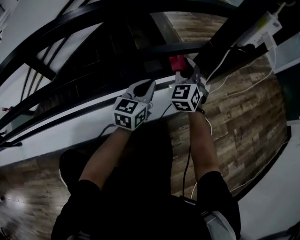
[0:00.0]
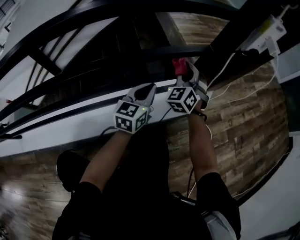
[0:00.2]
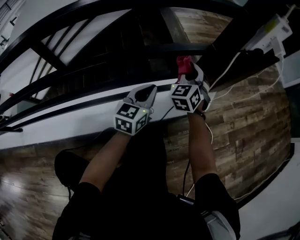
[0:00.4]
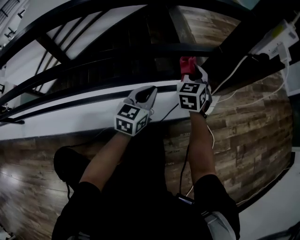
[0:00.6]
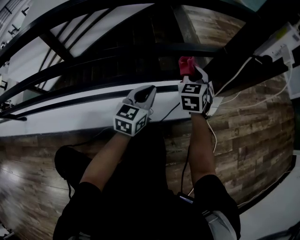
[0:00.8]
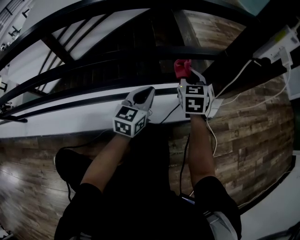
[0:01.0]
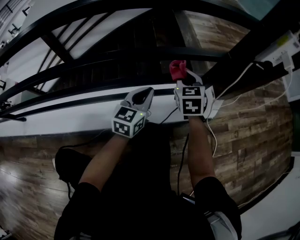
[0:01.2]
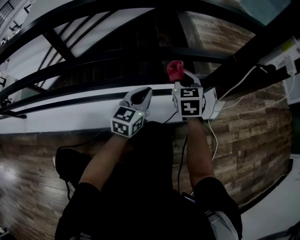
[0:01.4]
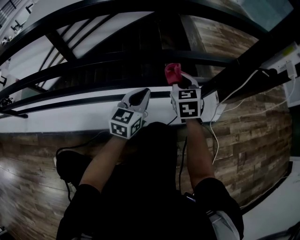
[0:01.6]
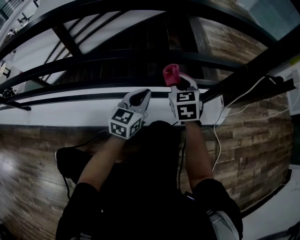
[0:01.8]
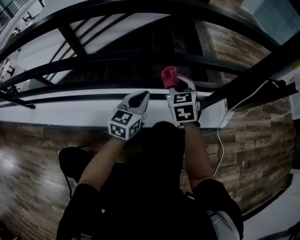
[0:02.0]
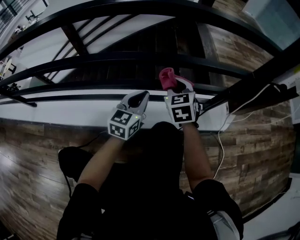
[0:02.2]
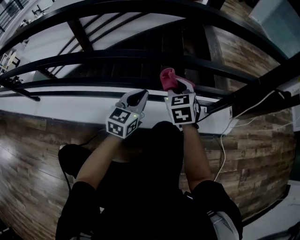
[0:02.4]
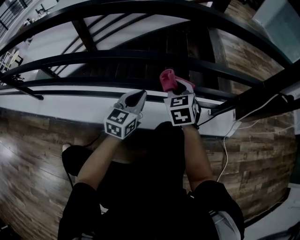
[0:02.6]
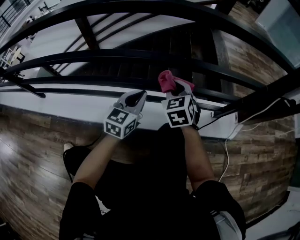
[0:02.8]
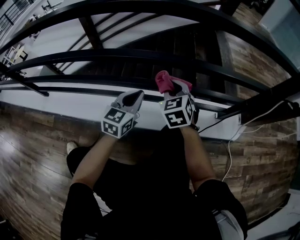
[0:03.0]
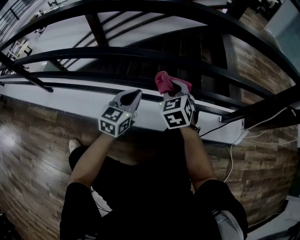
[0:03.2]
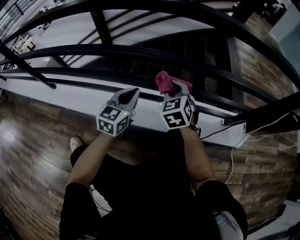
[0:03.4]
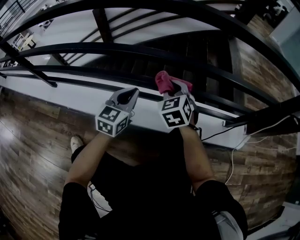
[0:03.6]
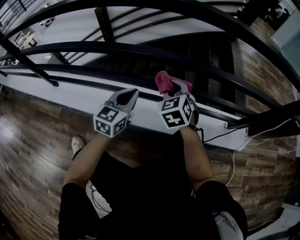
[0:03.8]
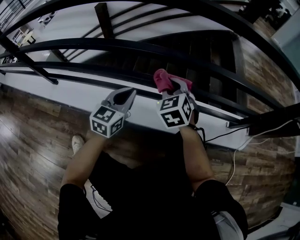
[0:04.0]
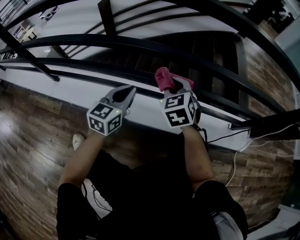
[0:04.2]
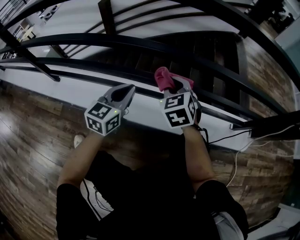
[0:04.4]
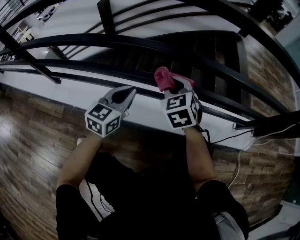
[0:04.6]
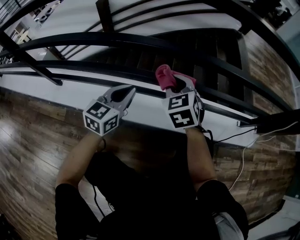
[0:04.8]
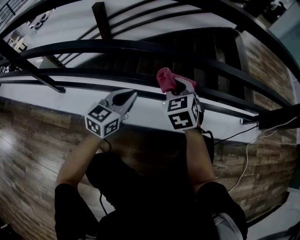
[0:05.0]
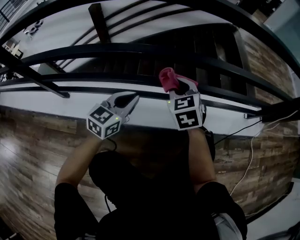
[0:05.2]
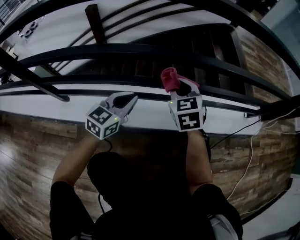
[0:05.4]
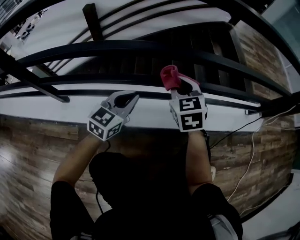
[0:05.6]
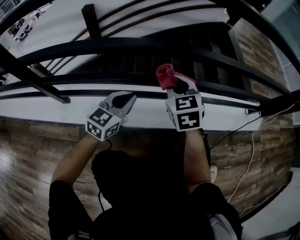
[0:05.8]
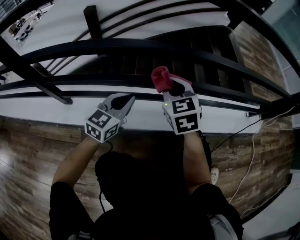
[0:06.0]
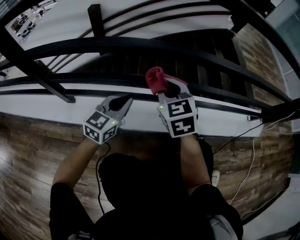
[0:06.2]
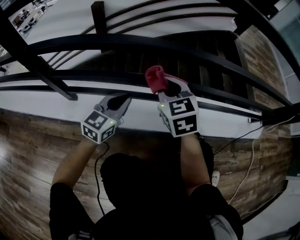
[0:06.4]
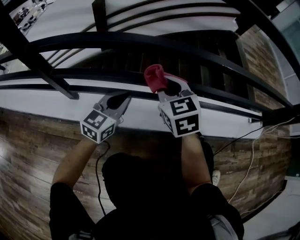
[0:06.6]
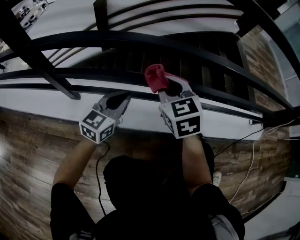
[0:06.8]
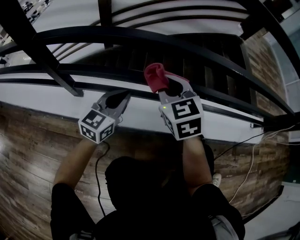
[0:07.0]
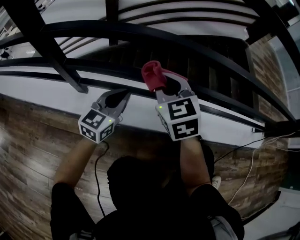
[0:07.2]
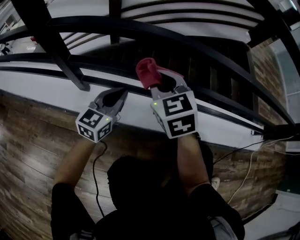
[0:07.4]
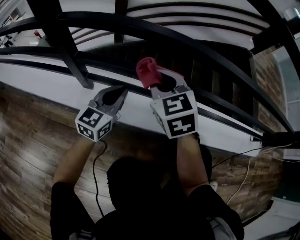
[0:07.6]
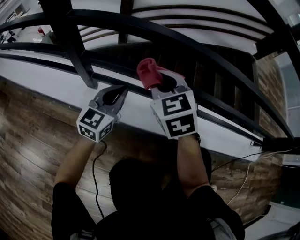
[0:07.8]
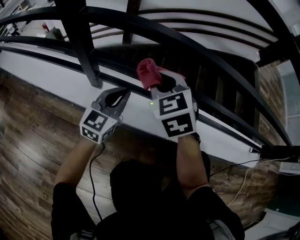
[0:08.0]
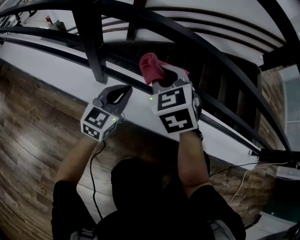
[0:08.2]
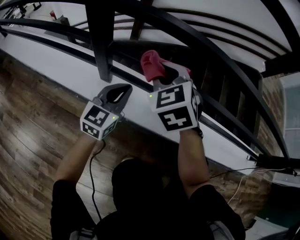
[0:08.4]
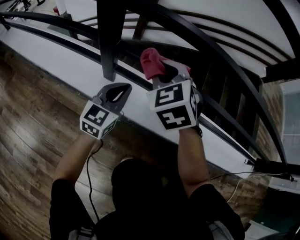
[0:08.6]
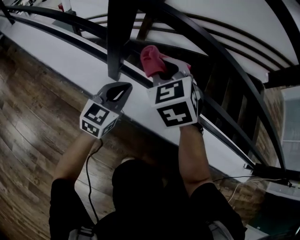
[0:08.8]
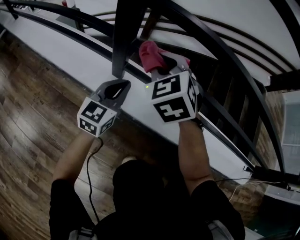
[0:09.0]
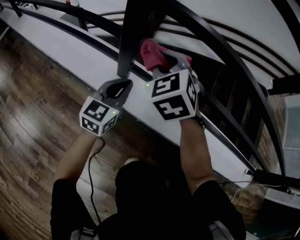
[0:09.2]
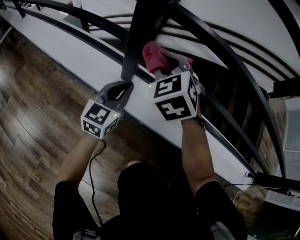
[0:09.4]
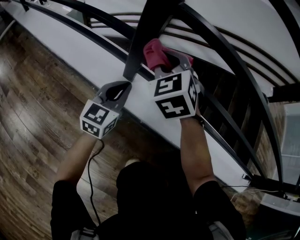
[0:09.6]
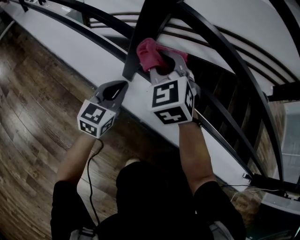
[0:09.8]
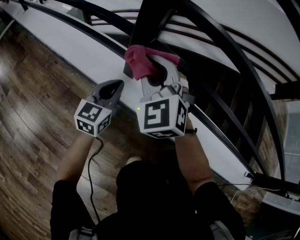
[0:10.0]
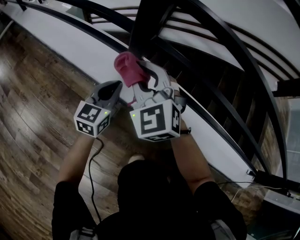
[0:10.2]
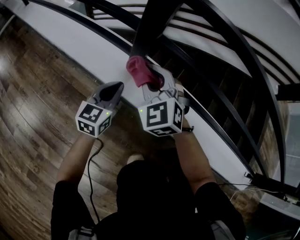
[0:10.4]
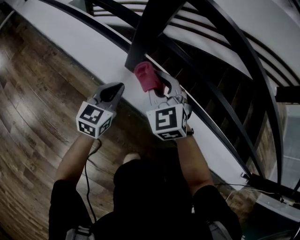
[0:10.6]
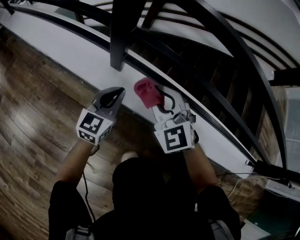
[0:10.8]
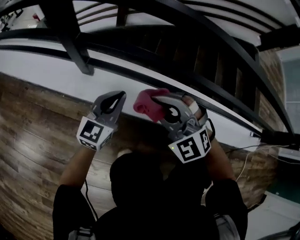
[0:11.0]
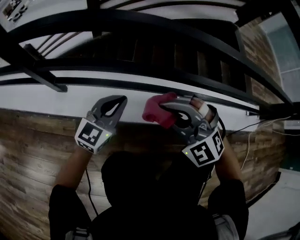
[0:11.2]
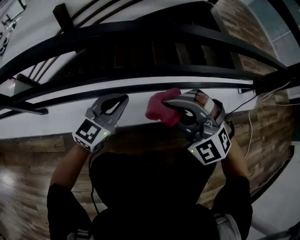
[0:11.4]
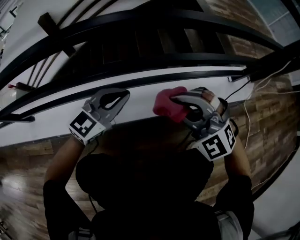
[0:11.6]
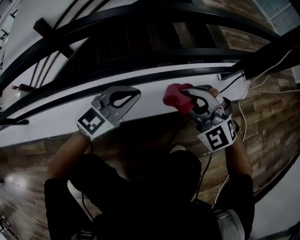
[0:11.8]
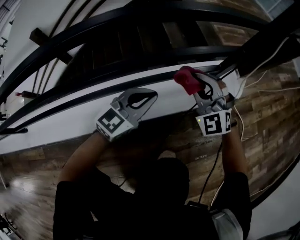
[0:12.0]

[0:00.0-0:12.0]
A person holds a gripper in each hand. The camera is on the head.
0:00.0 to 0:01.6: The left gripper travels to the left by approximately 10 cm. Meanwhile the right gripper travels to the left and downward by some 10 cm, and changes its angle by approximately 30 degrees.
0:01.6 to 0:03.0: Both grippers move to the left, some 20 cm. The right gripper changes its angle by approximately 20 degrees.
0:03.0 to 0:04.4: The two grippers go some 15 cm to the left.
0:04.4 to 0:06.0: Both grippers travel together to the left, about 20 cm.
0:06.0 to 0:07.6: Both grippers move to the left, approximately 20 cm.
0:07.6 to 0:09.0: Both grippers travel together to the left, about 15 cm. The right gripper changes its angle by some 20 degrees.
0:09.0 to 0:10.4: The left gripper heads to the left and downward, covering about 10 cm. Meanwhile the right gripper moves downward and to the left, approximately 10 cm.
0:10.4 to 0:12.0: The pair of grippers is taken approximately 90 cm. The left gripper swivels roughly 70 degrees; the right gripper changes its angle by approximately 40 degrees.

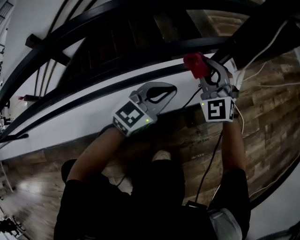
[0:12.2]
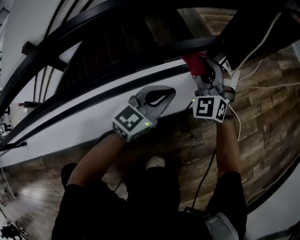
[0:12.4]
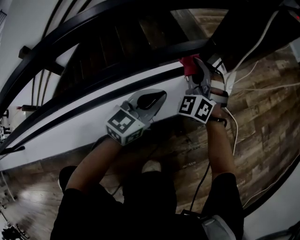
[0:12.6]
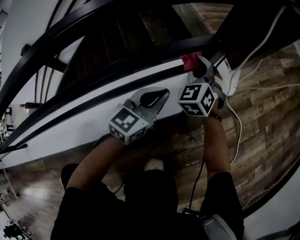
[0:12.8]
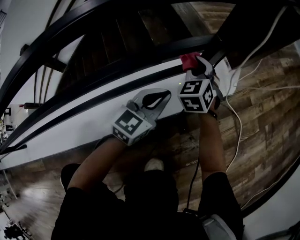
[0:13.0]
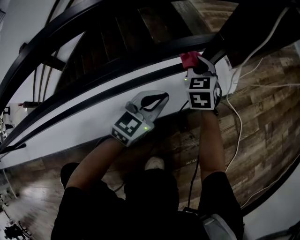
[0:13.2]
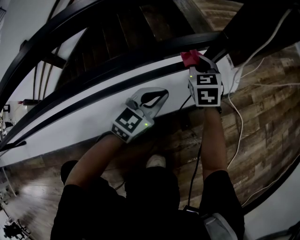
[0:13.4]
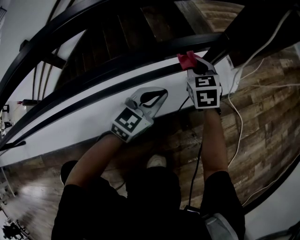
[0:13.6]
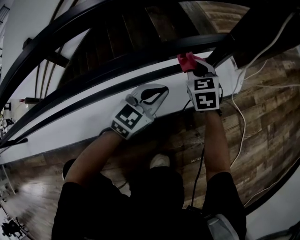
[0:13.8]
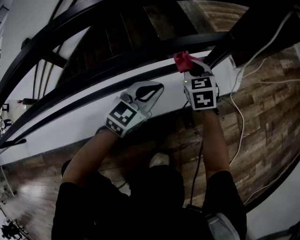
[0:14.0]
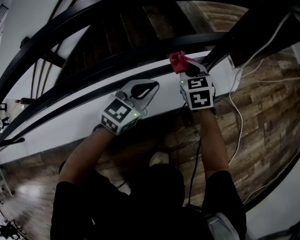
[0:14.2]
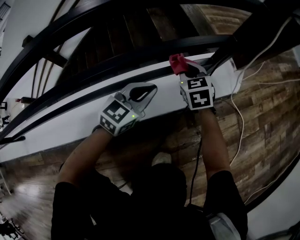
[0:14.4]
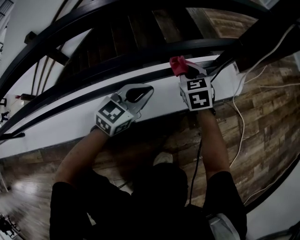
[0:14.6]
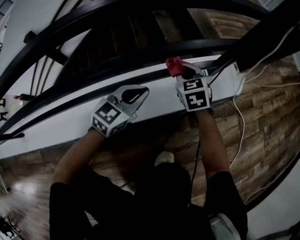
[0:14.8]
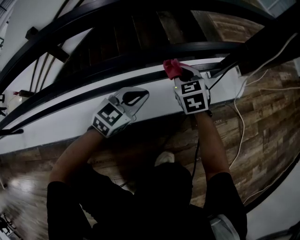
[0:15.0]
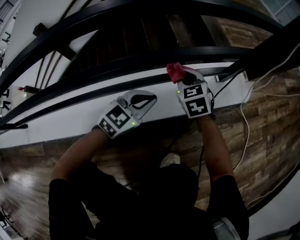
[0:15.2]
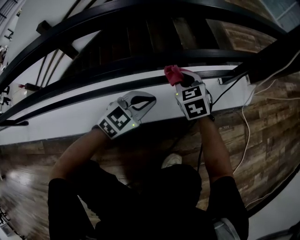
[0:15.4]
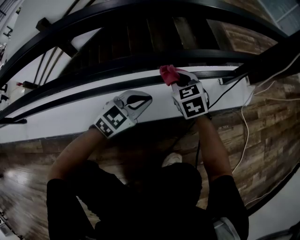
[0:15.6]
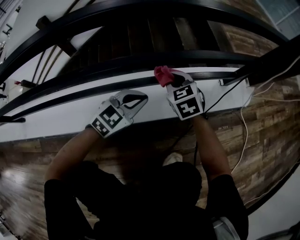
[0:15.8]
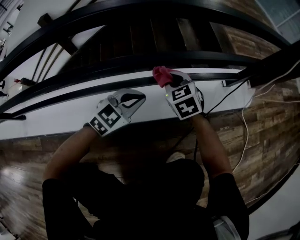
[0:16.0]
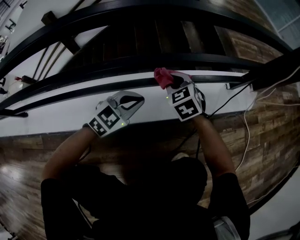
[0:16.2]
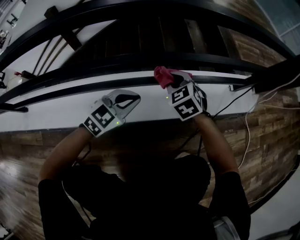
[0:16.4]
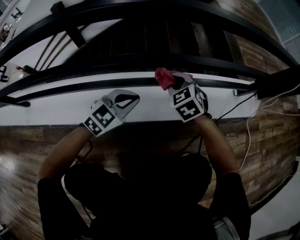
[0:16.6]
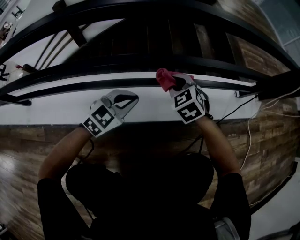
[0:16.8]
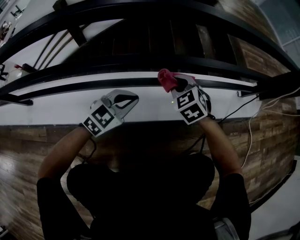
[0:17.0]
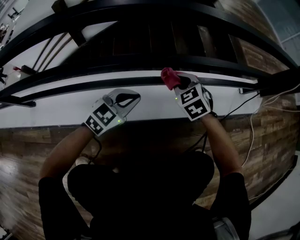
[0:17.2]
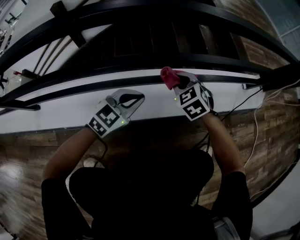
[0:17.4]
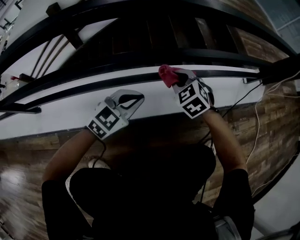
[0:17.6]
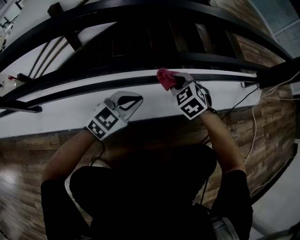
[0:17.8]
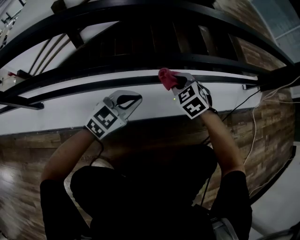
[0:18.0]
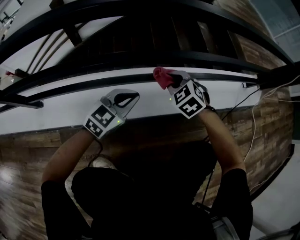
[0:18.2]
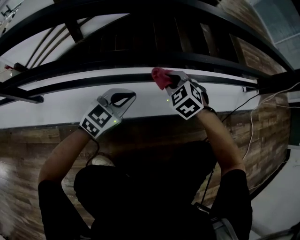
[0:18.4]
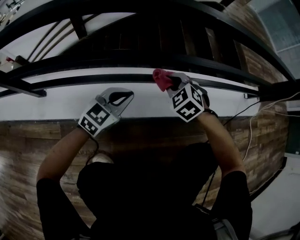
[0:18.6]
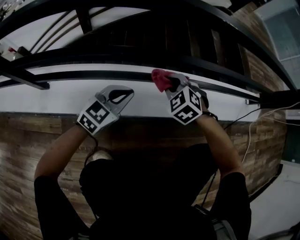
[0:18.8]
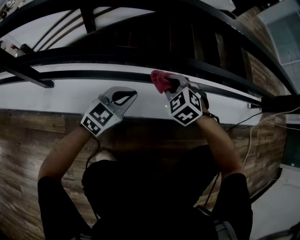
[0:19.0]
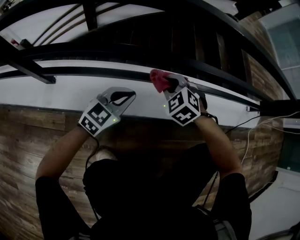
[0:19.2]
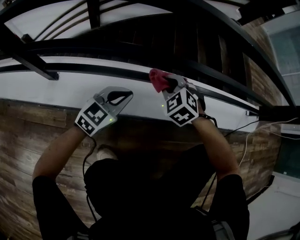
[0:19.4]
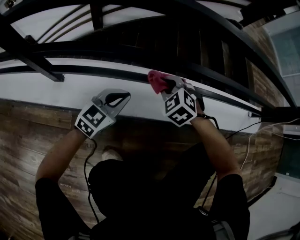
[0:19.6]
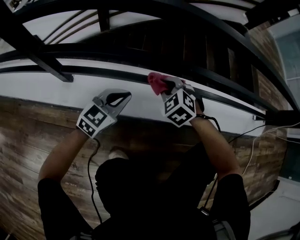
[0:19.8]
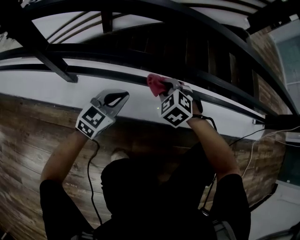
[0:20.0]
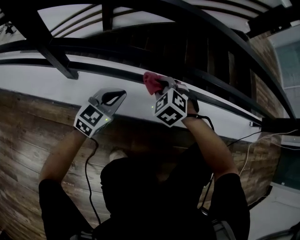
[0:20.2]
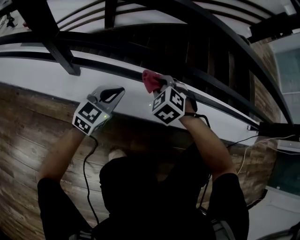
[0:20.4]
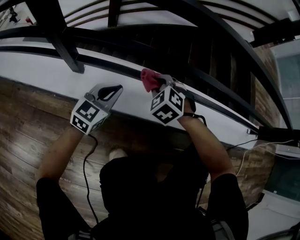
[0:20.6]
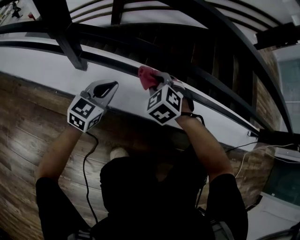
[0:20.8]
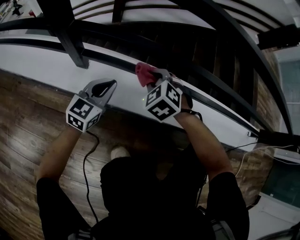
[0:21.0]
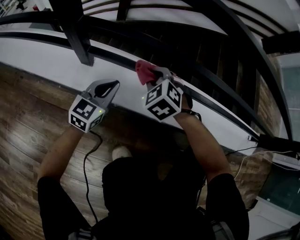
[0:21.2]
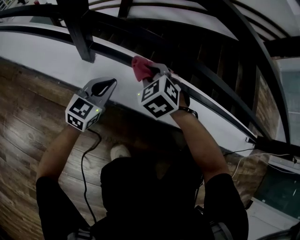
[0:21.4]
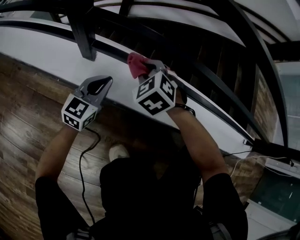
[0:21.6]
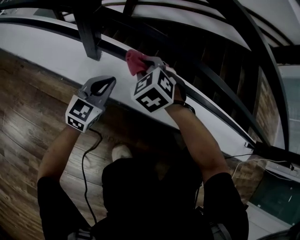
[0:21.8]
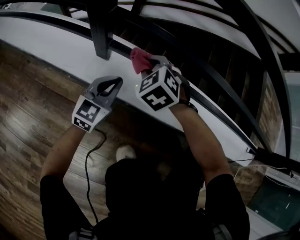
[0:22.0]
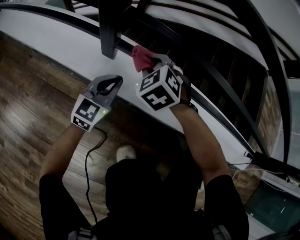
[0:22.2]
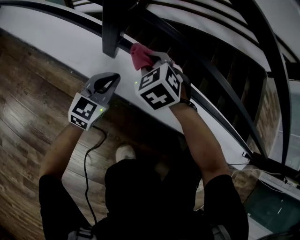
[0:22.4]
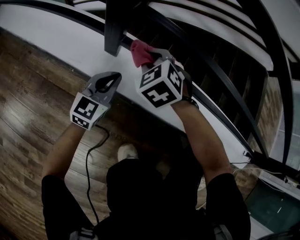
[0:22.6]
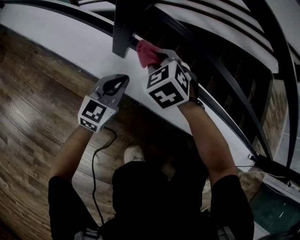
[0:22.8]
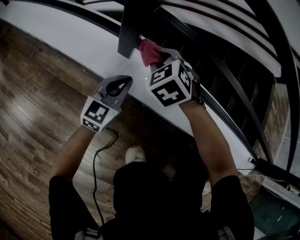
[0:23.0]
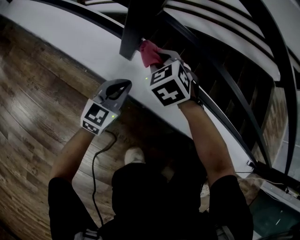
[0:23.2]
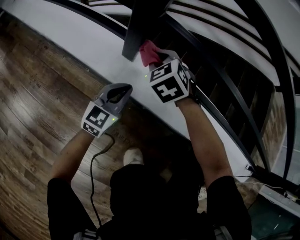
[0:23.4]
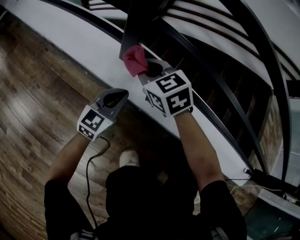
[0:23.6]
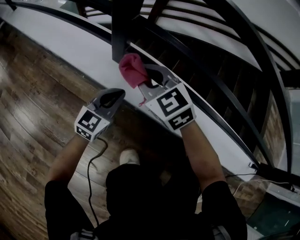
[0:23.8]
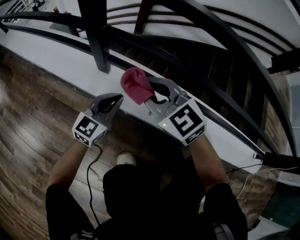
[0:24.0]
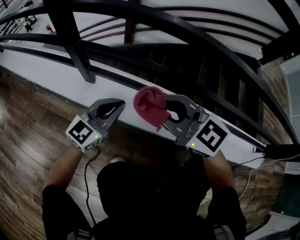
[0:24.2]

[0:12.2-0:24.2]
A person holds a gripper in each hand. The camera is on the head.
0:12.2 to 0:13.8: The left gripper ends up some 5 cm from where it was. The right gripper is displaced downward by some 10 cm, and rotates approximately 40 degrees.
0:13.8 to 0:15.2: The grippers both shift to the left and backward by about 15 cm.
0:15.2 to 0:16.6: The two grippers go about 20 cm to the left and backward. The right gripper rotates about 20 degrees.
0:16.6 to 0:18.2: Both grippers travel together to the left and backward, roughly 15 cm.
0:18.2 to 0:19.8: The two grippers go some 20 cm to the left.
0:19.8 to 0:21.2: Both grippers travel together to the left, roughly 15 cm. The left gripper rotates about 20 degrees.
0:21.2 to 0:22.6: The right gripper goes roughly 15 cm to the left; the left gripper is displaced to the left by roughly 10 cm.
0:22.6 to 0:24.2: The left gripper shifts approximately 20 cm to the right, upward and backward, while the right gripper shifts approximately 30 cm upward, backward and to the right, and points its fingers about 40 degrees further upward.
